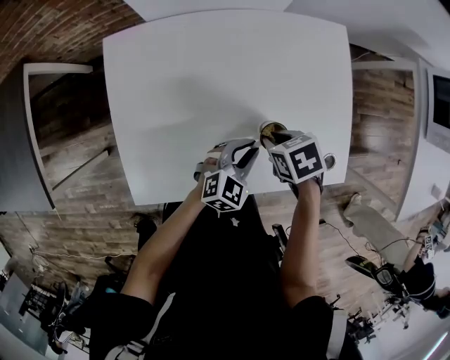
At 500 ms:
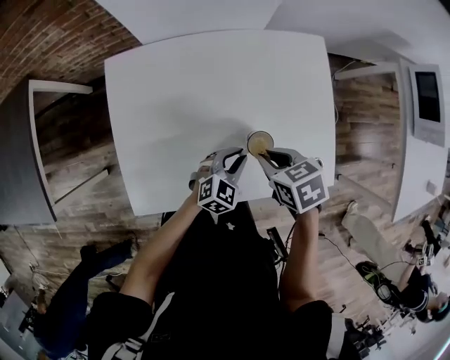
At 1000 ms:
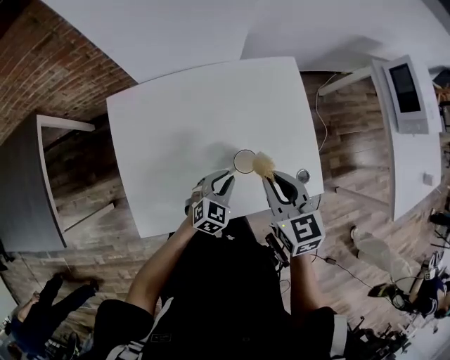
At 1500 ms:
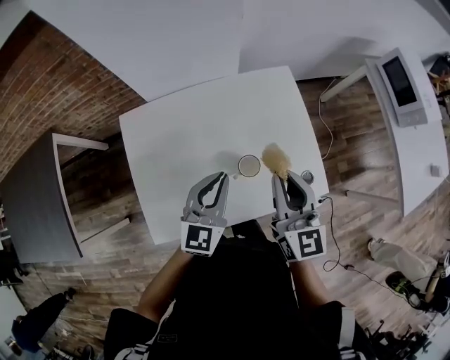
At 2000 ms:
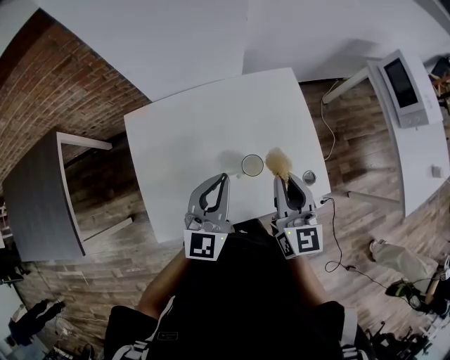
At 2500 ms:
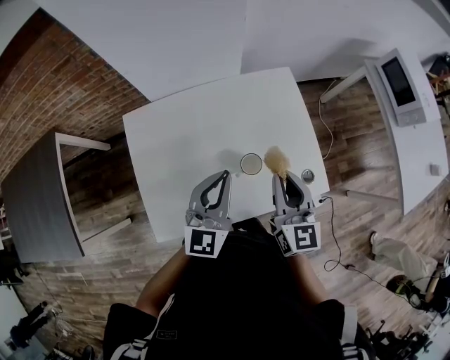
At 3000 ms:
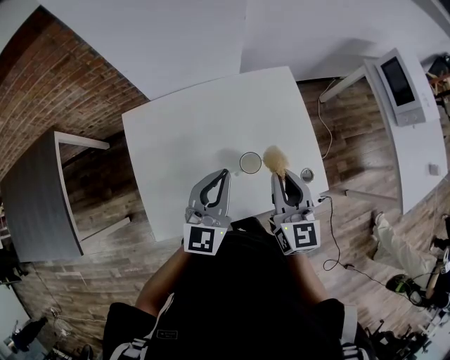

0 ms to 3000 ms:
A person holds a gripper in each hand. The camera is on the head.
0 ms to 1500 ms: Both grippers move upward, roughly 25 cm. The right gripper tilts its fingers about 60 degrees upward; the left gripper turns by some 30 degrees.
1500 ms to 3000 ms: The grippers stay close to where they were, moving slightly.

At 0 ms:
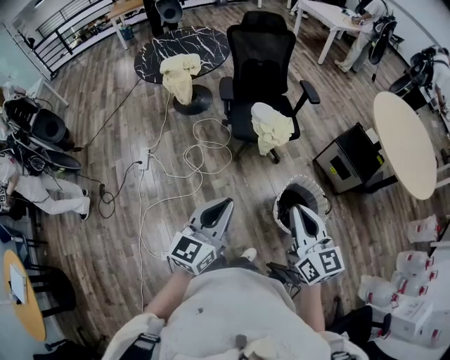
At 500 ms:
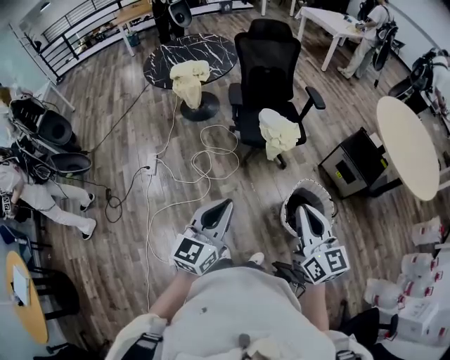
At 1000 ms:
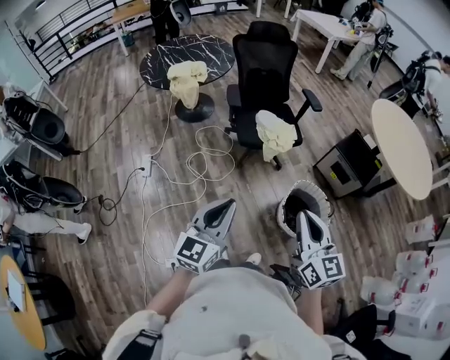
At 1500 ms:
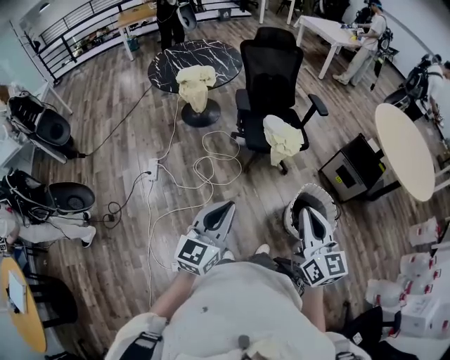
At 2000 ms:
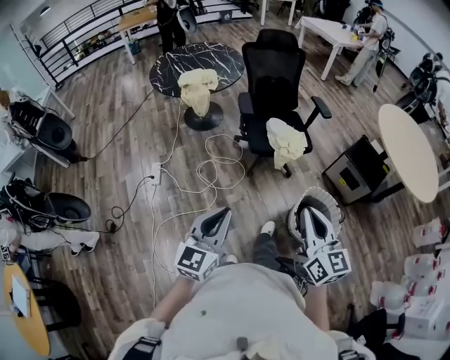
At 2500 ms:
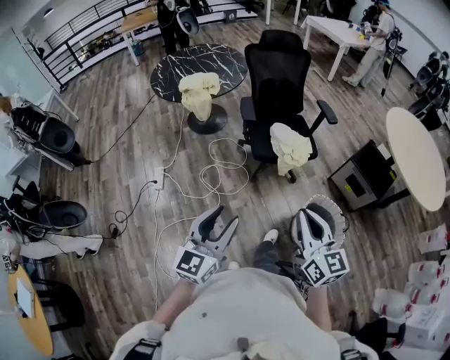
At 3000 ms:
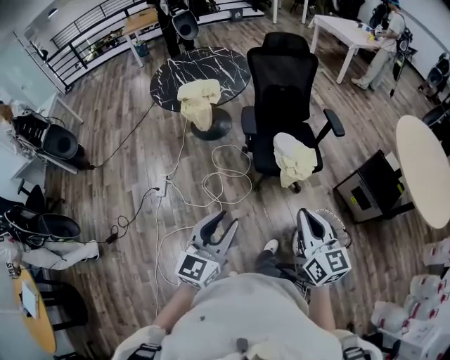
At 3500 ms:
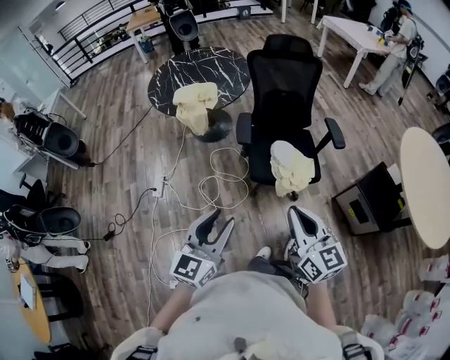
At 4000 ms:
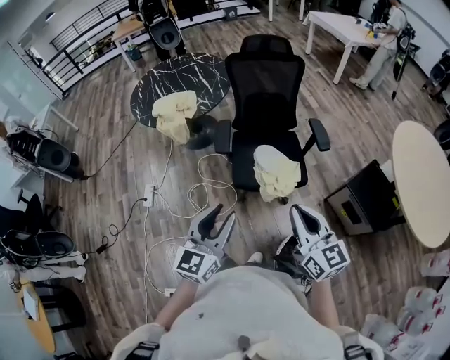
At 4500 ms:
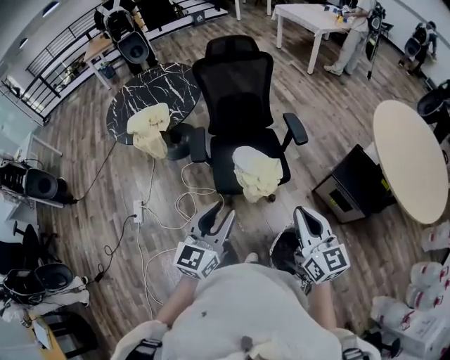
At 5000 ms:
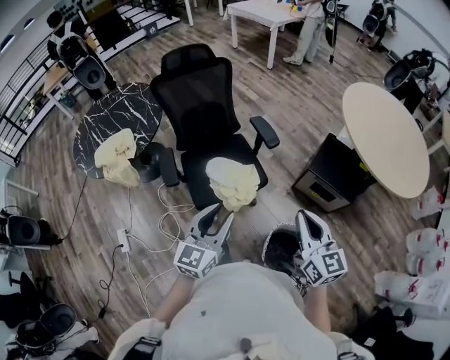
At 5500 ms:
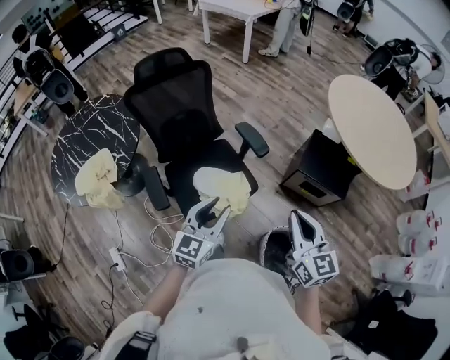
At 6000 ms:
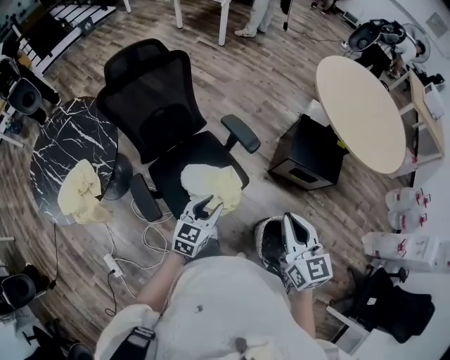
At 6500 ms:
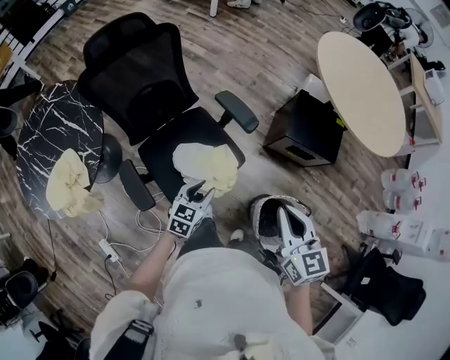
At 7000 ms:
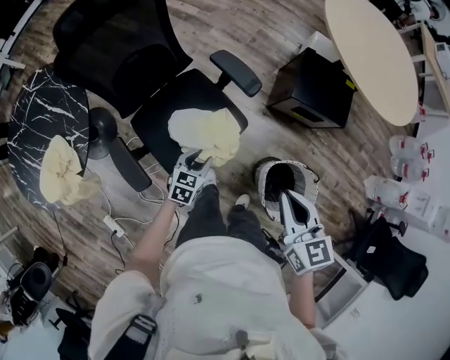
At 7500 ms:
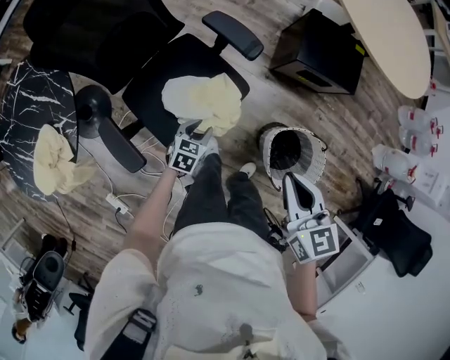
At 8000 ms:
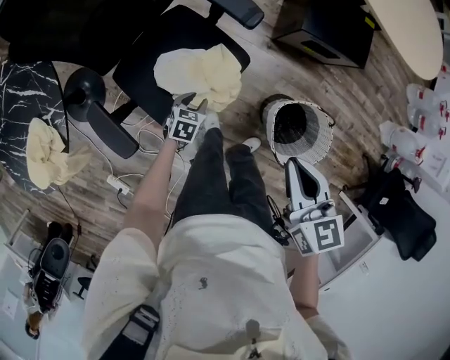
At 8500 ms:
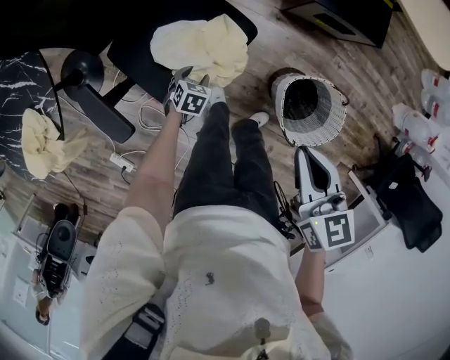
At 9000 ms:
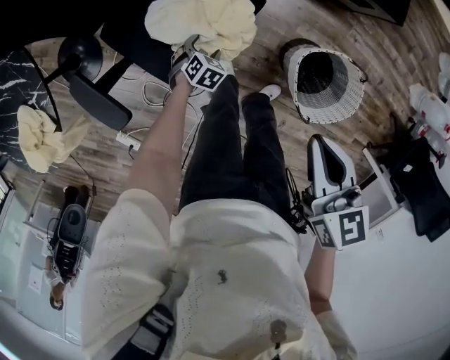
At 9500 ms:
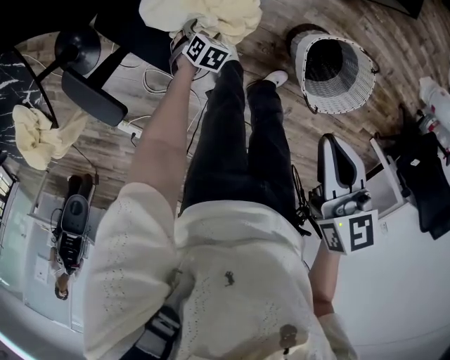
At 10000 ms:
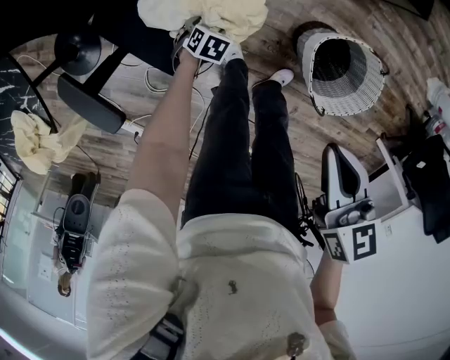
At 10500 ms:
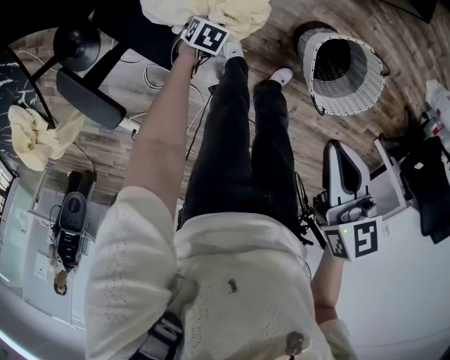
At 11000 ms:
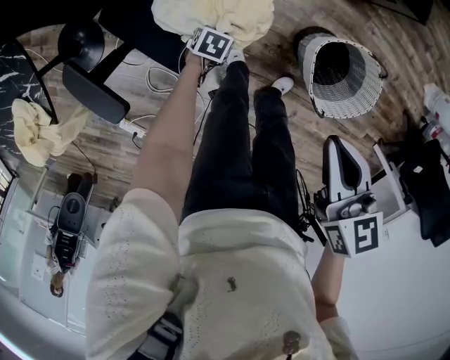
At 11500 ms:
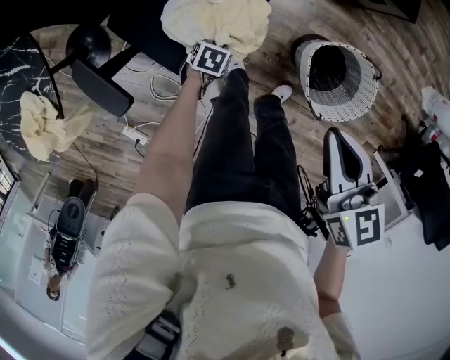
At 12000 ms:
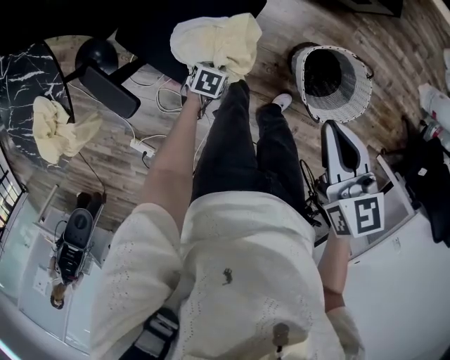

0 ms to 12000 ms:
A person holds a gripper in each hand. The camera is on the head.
0 ms to 2000 ms: The grippers both shift to the left by roughly 15 cm.
2000 ms to 4000 ms: Both grippers are carried forward and to the right, about 50 cm. The left gripper opens its fingers.
4000 ms to 6000 ms: The left gripper moves roughly 50 cm, and rotates roughly 50 degrees. The right gripper ends up roughly 30 cm from where it was, and changes its angle by about 40 degrees.
6000 ms to 8000 ms: The right gripper is displaced downward by roughly 25 cm, and rotates about 20 degrees; the left gripper is displaced downward by roughly 40 cm, and angles its fingers downward, by about 30 degrees.
8000 ms to 10000 ms: The two grippers go about 20 cm downward. The left gripper changes its angle by some 20 degrees, and opens.
10000 ms to 12000 ms: Both grippers move upward, roughly 15 cm. The left gripper closes its fingers.

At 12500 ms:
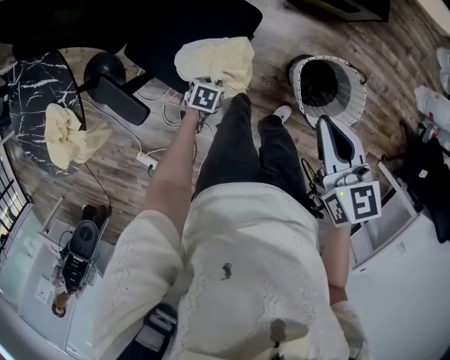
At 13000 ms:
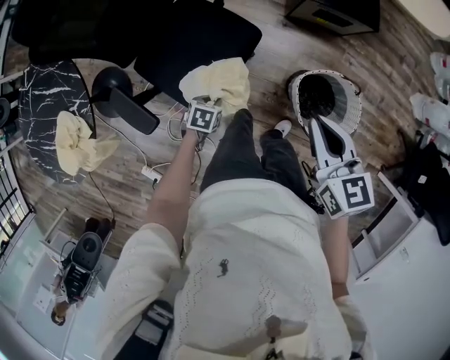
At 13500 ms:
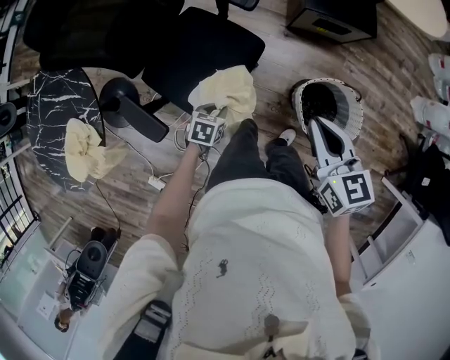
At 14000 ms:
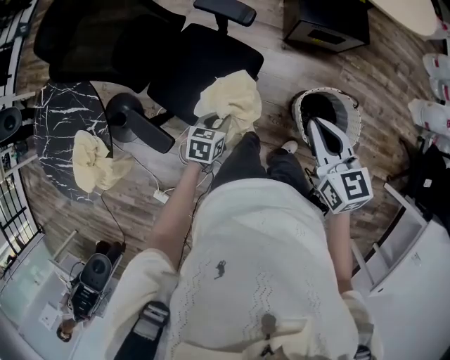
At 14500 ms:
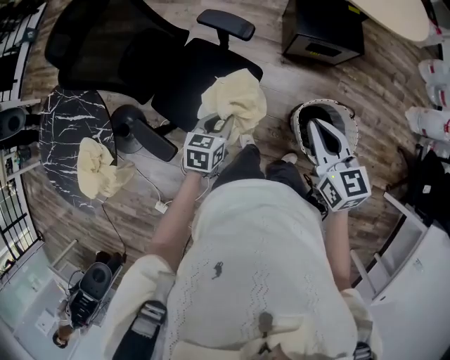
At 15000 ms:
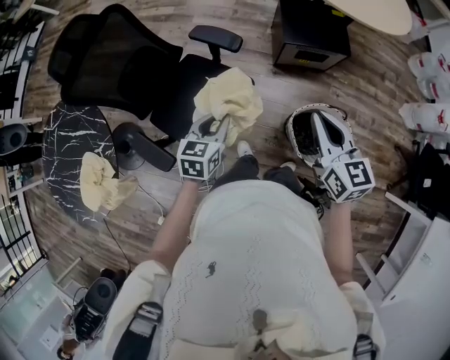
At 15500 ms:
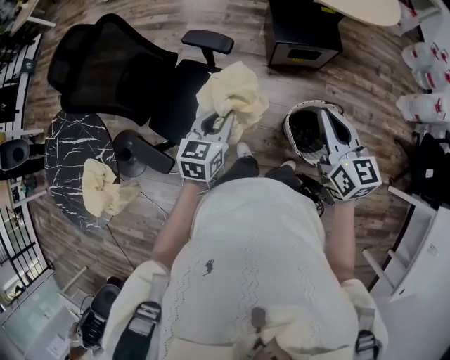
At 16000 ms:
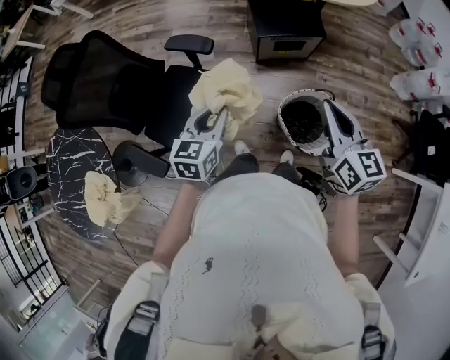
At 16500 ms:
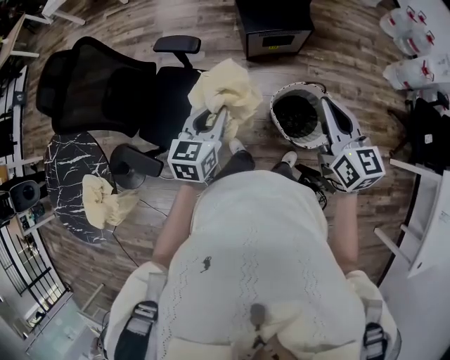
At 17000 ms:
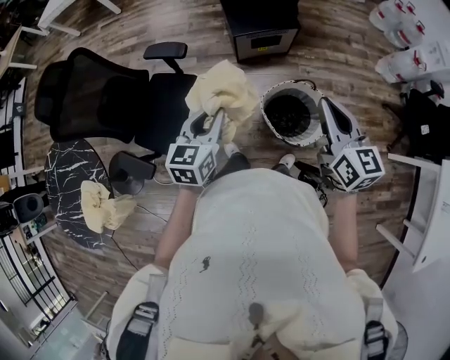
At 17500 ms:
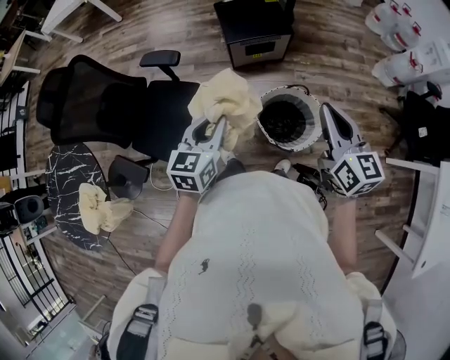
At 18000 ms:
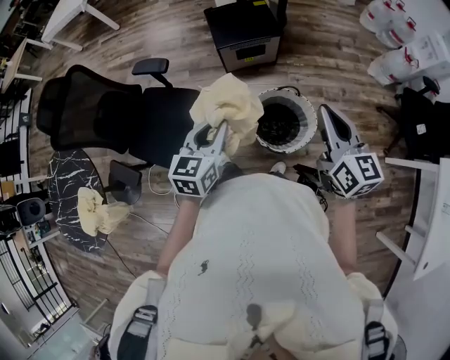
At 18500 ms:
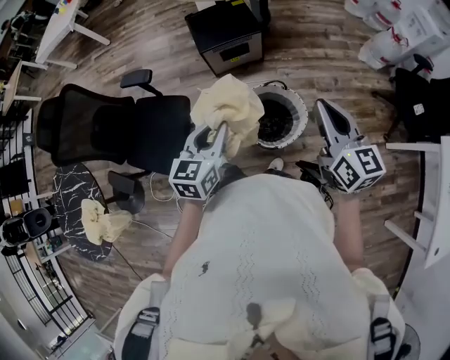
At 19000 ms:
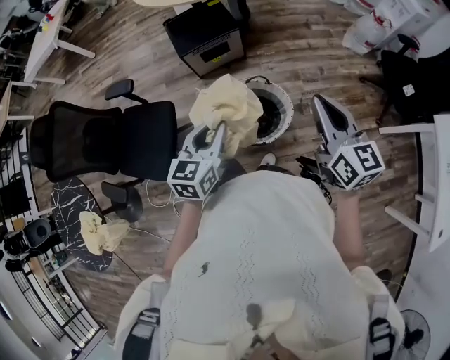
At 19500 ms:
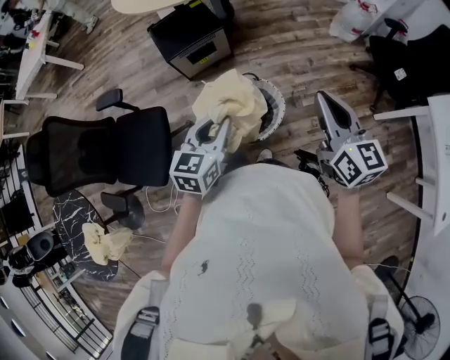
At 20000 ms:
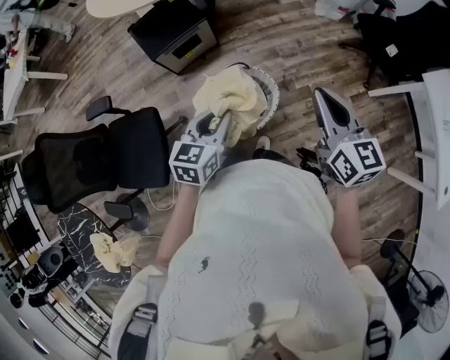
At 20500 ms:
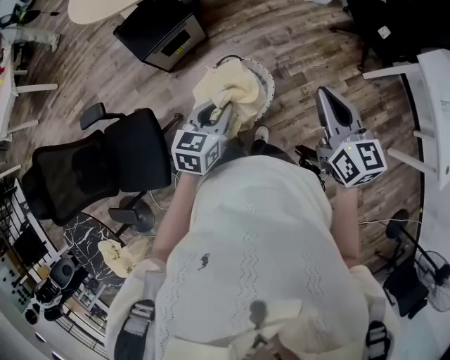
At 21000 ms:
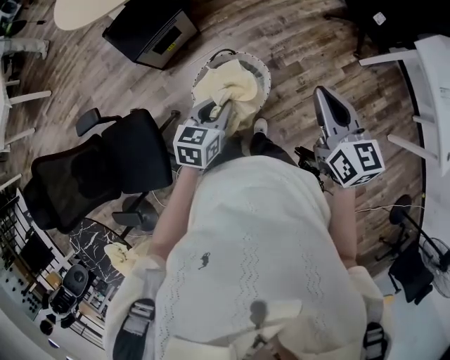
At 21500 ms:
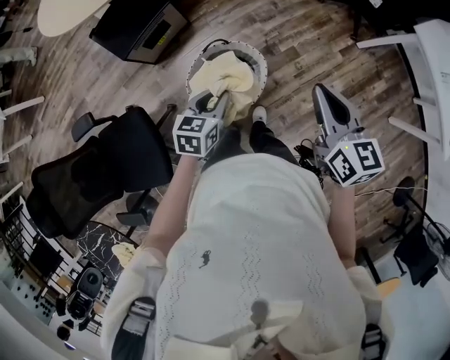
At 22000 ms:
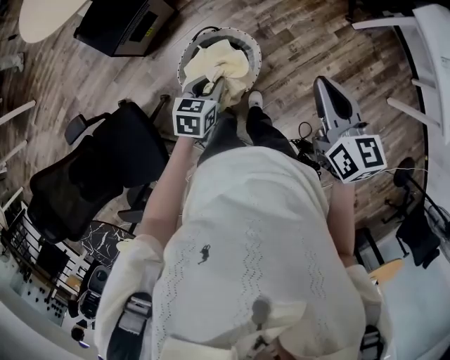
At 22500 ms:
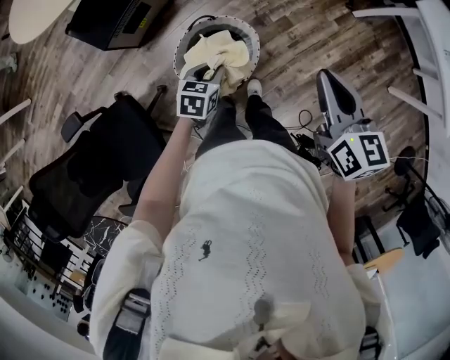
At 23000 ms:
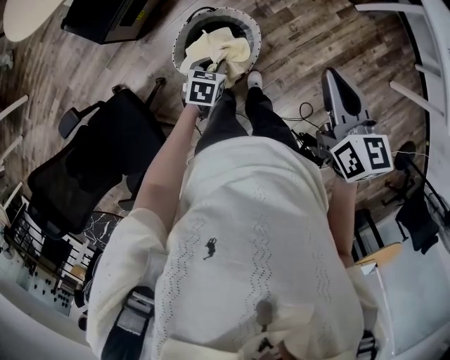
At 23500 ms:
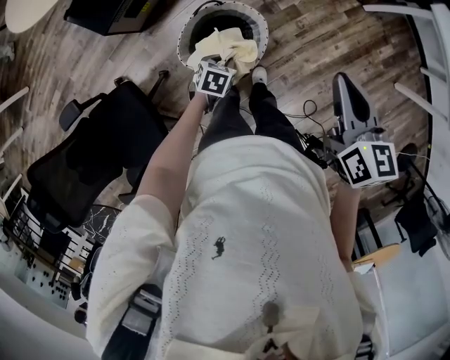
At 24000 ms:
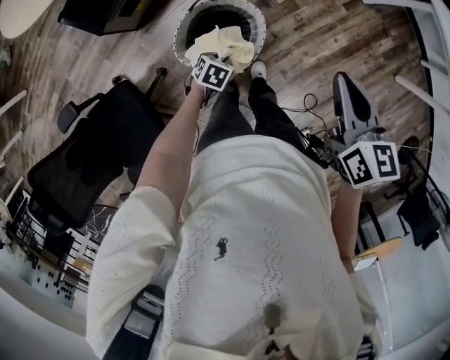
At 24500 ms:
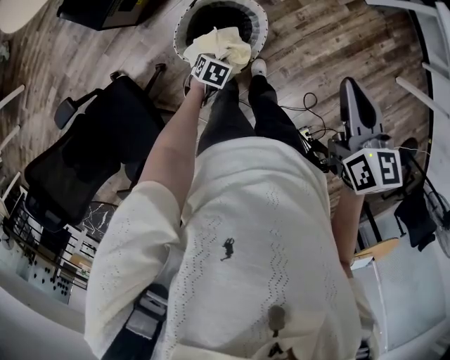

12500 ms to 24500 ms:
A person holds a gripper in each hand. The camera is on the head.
12500 ms to 14500 ms: The left gripper heads upward, covering roughly 30 cm, and changes its angle by roughly 30 degrees. Meanwhile the right gripper travels upward by some 10 cm.
14500 ms to 16500 ms: Both grippers move to the right and upward, some 20 cm. The left gripper turns by some 20 degrees; the right gripper turns by about 20 degrees.
16500 ms to 18500 ms: The grippers both shift to the right by some 35 cm.
18500 ms to 20500 ms: The left gripper moves about 20 cm, and rotates some 30 degrees; the right gripper changes place by approximately 15 cm, and changes its angle by approximately 20 degrees.
20500 ms to 22500 ms: The left gripper moves downward, some 20 cm, and rotates roughly 20 degrees. The right gripper shifts about 10 cm downward.
22500 ms to 24500 ms: The left gripper shifts approximately 15 cm downward, and turns by some 30 degrees.
